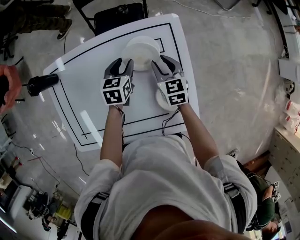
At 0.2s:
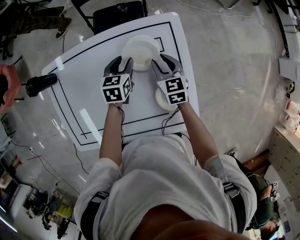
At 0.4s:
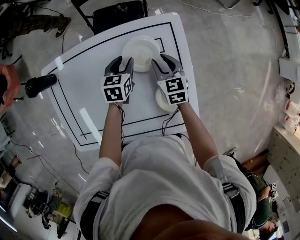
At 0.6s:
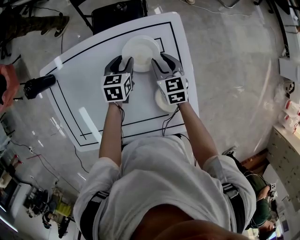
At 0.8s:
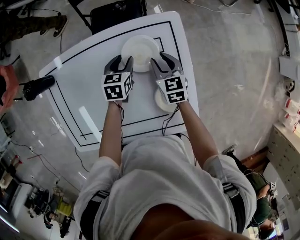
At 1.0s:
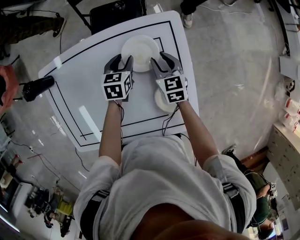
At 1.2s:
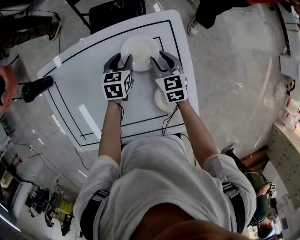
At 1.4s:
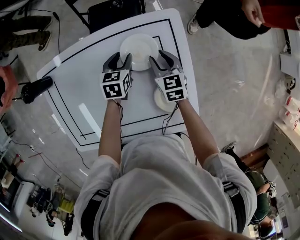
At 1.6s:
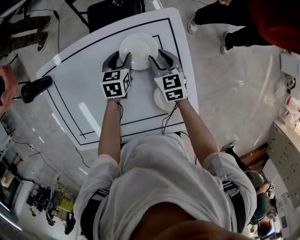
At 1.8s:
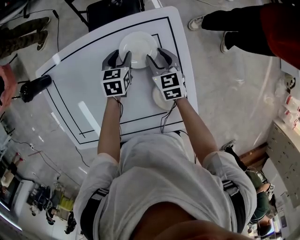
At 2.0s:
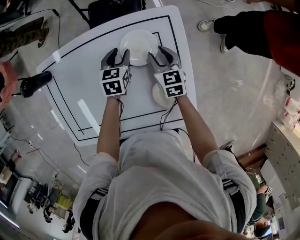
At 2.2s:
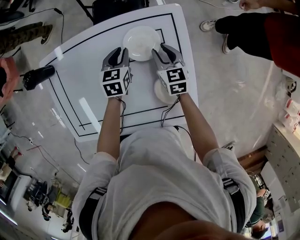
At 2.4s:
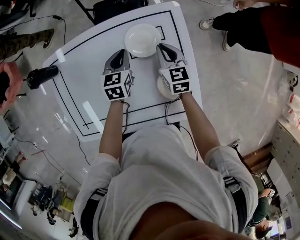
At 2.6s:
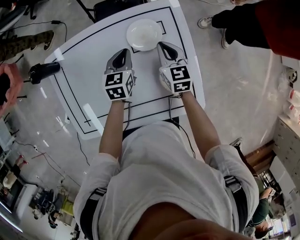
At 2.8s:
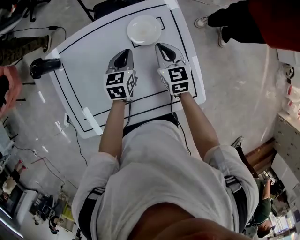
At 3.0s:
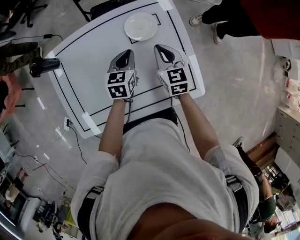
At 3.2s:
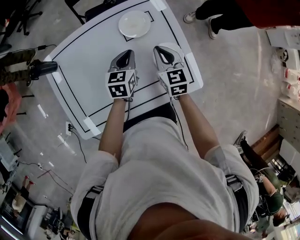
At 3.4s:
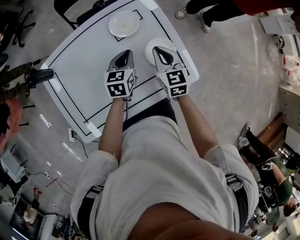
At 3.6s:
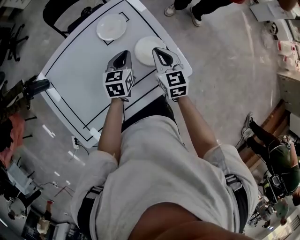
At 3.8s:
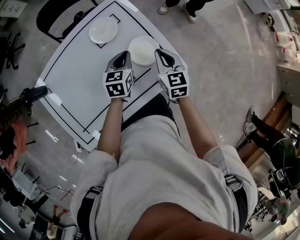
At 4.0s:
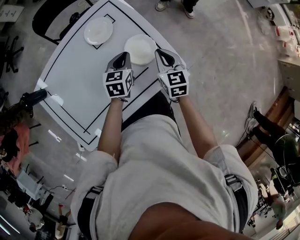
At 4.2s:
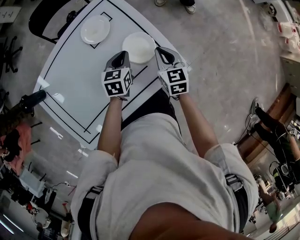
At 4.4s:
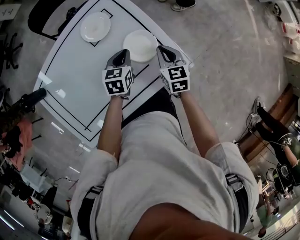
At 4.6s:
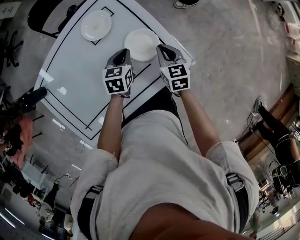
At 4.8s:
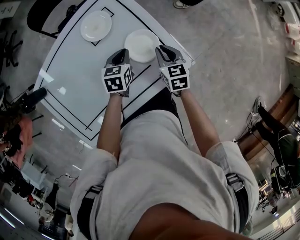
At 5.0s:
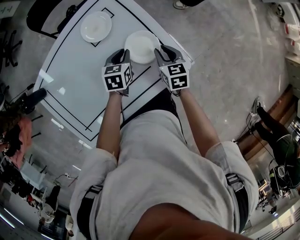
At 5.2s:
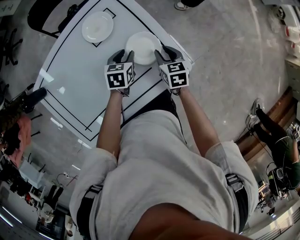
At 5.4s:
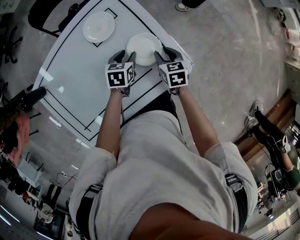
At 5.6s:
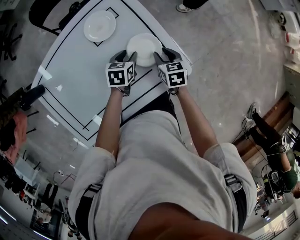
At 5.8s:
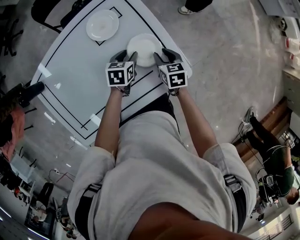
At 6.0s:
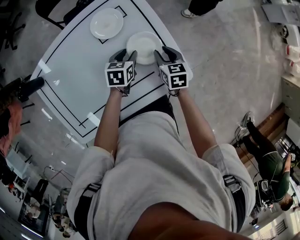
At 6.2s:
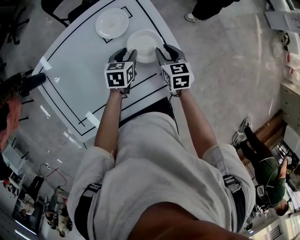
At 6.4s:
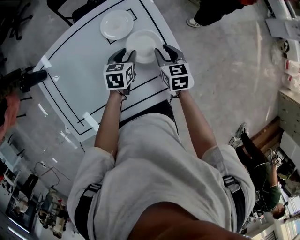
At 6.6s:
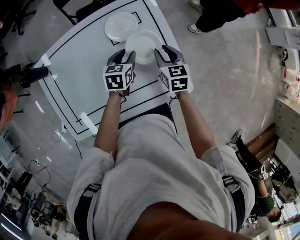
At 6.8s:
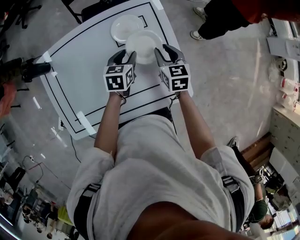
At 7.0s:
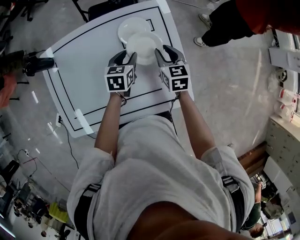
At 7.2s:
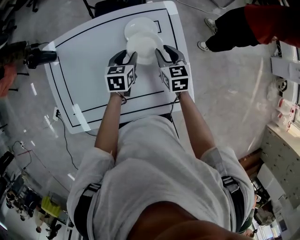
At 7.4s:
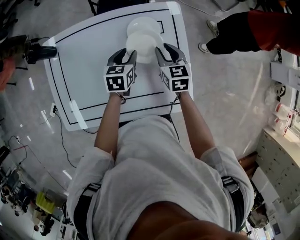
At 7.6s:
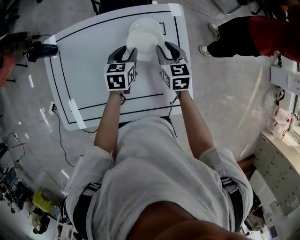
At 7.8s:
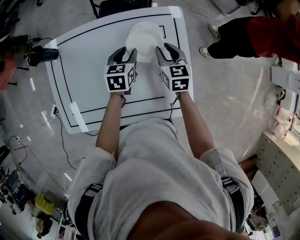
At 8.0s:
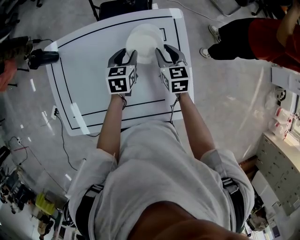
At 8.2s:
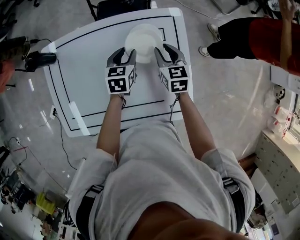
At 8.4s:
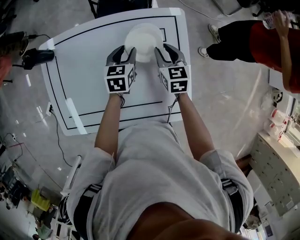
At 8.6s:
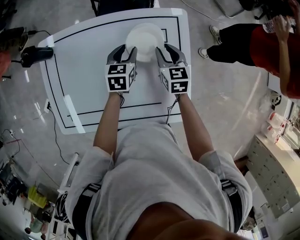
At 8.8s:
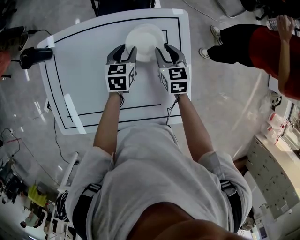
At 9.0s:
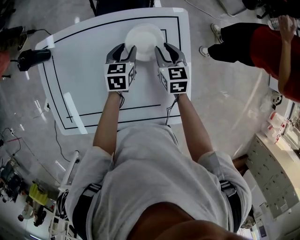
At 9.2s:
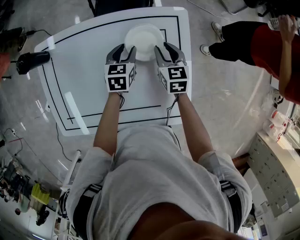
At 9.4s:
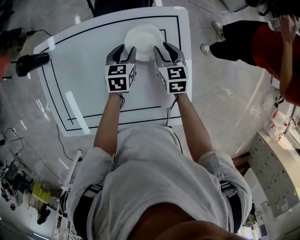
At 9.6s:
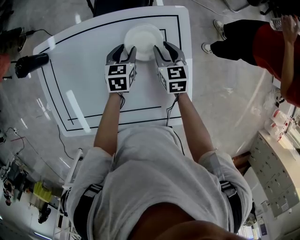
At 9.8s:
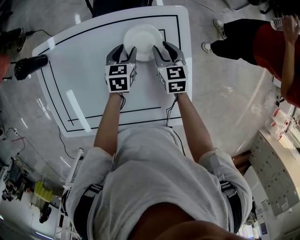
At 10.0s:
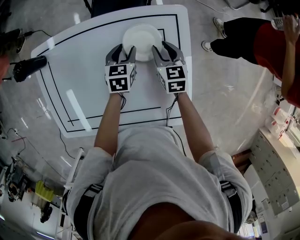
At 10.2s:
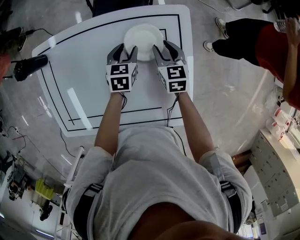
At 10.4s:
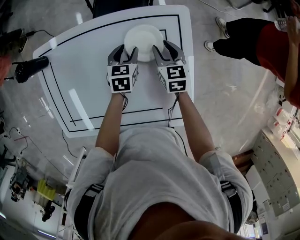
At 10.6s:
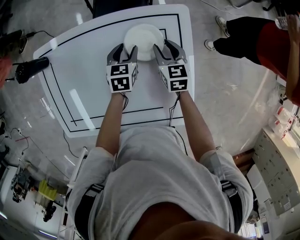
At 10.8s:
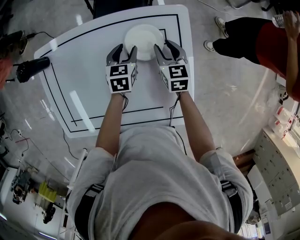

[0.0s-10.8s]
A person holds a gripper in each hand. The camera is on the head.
0.0s to 1.6s: The left gripper ends up about 5 cm from where it was.
1.6s to 3.0s: Both grippers move backward and upward, approximately 15 cm. The left gripper closes. Meanwhile the right gripper closes its fingers.
3.0s to 4.6s: The right gripper travels to the right, downward and backward by about 20 cm, and changes its angle by roughly 20 degrees. Meanwhile the left gripper travels to the right and downward by about 15 cm, and swivels some 20 degrees.
4.6s to 6.2s: The right gripper moves forward, approximately 5 cm, and opens its fingers, while the left gripper ends up some 5 cm from where it was, and opens.
6.2s to 7.8s: The left gripper moves to the left, forward and upward, about 15 cm, and rotates some 20 degrees, while the right gripper travels forward, to the left and upward by roughly 20 cm, and rotates some 20 degrees.
7.8s to 9.2s: Both grippers travel together downward and forward, roughly 10 cm.
9.2s to 10.8s: There are only small adjustments of the grippers.

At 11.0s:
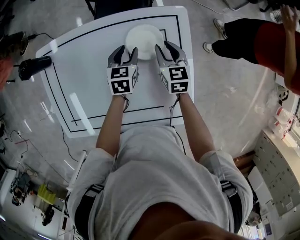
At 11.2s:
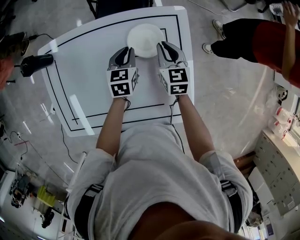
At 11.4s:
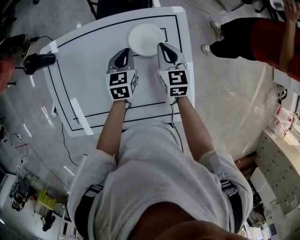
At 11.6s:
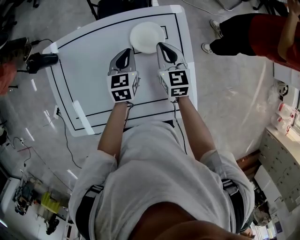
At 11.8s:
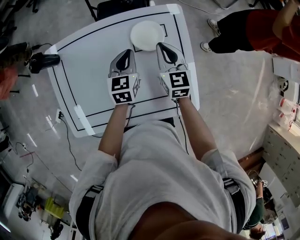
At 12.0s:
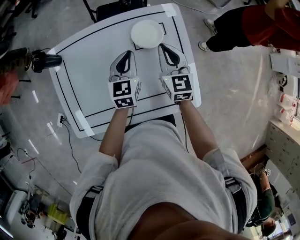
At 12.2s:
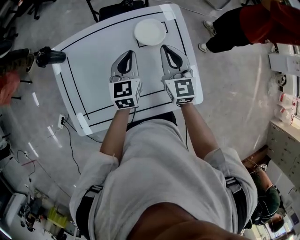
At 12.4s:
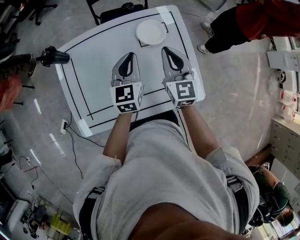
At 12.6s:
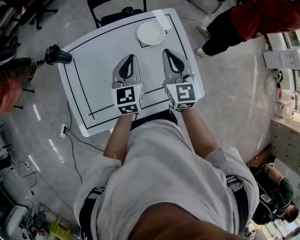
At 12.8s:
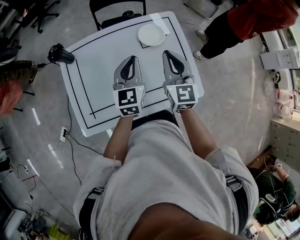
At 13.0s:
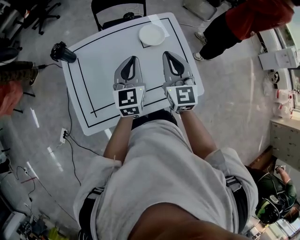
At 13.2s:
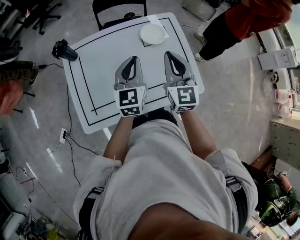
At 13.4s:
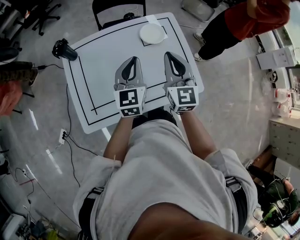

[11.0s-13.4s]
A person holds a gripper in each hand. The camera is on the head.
11.0s to 12.2s: Both grippers travel together upward and backward, some 20 cm. The left gripper turns by approximately 20 degrees, and closes. The right gripper swivels about 20 degrees, and closes.
12.2s to 13.4s: The two grippers go about 15 cm backward and upward.

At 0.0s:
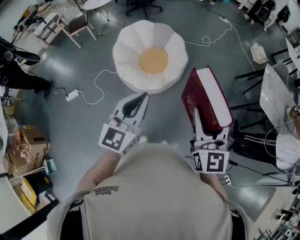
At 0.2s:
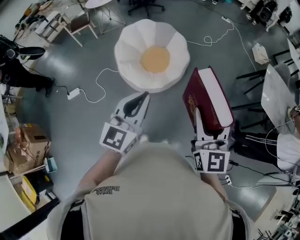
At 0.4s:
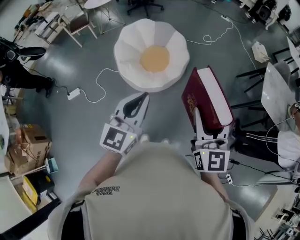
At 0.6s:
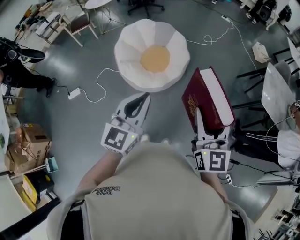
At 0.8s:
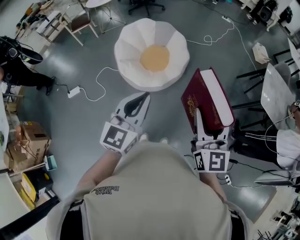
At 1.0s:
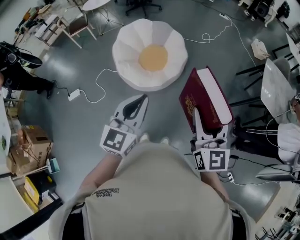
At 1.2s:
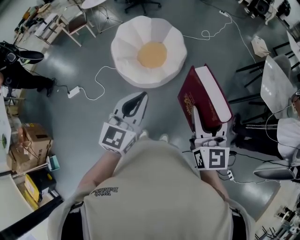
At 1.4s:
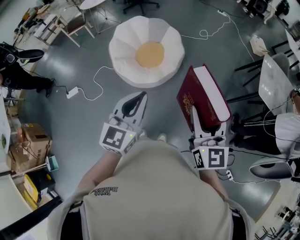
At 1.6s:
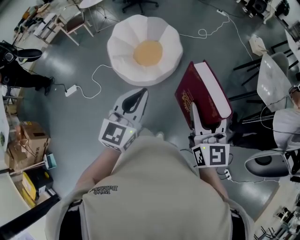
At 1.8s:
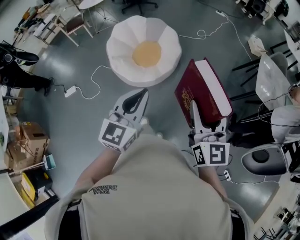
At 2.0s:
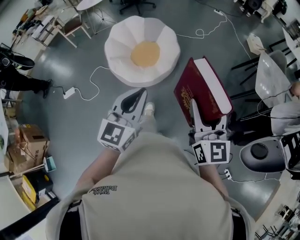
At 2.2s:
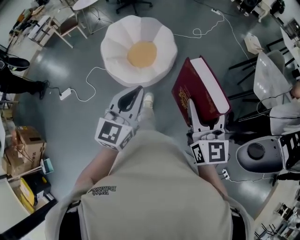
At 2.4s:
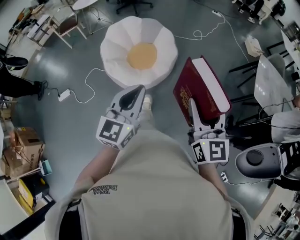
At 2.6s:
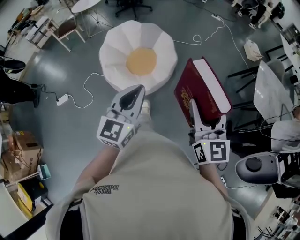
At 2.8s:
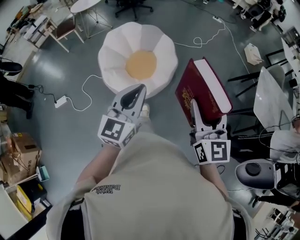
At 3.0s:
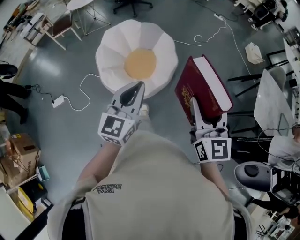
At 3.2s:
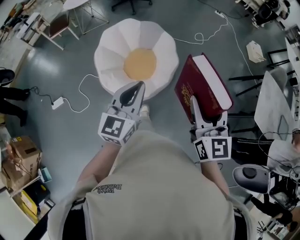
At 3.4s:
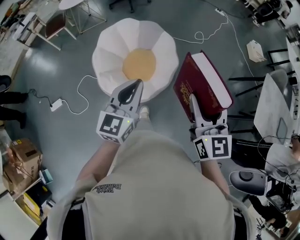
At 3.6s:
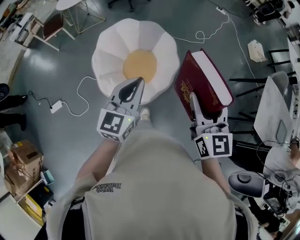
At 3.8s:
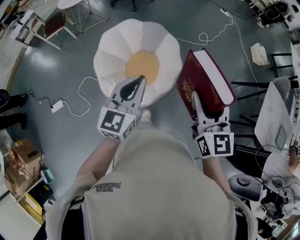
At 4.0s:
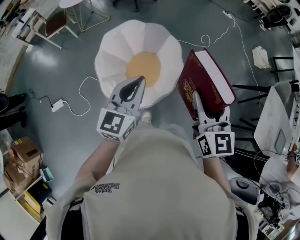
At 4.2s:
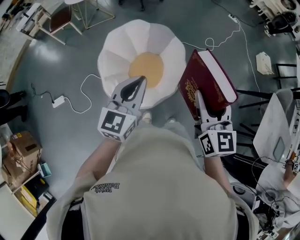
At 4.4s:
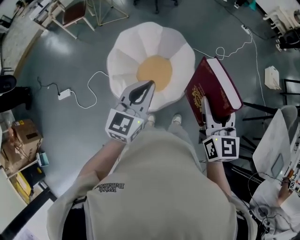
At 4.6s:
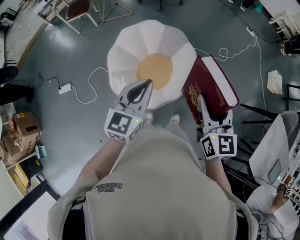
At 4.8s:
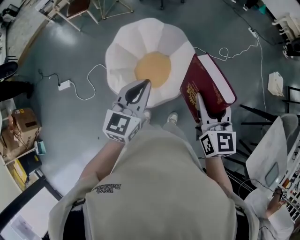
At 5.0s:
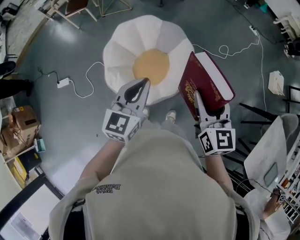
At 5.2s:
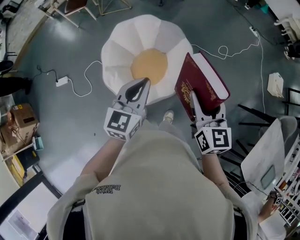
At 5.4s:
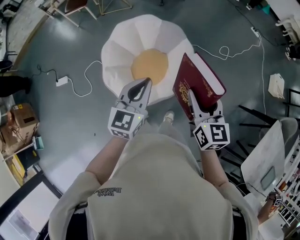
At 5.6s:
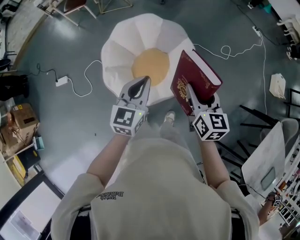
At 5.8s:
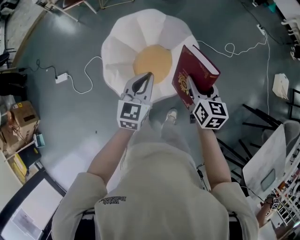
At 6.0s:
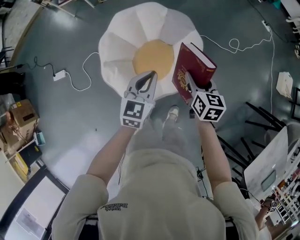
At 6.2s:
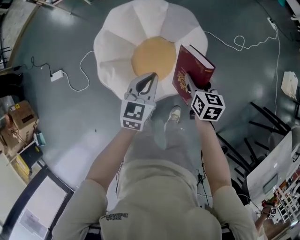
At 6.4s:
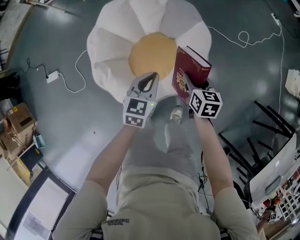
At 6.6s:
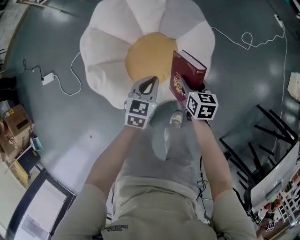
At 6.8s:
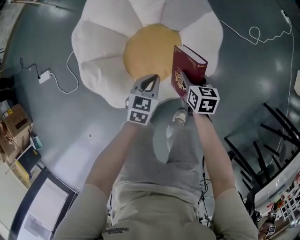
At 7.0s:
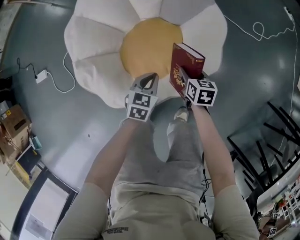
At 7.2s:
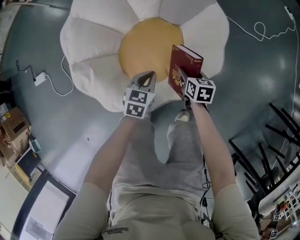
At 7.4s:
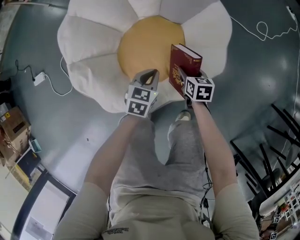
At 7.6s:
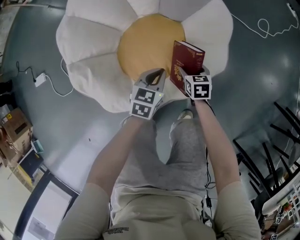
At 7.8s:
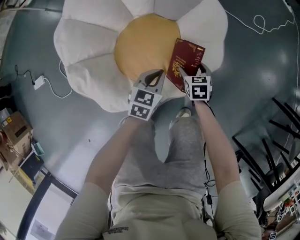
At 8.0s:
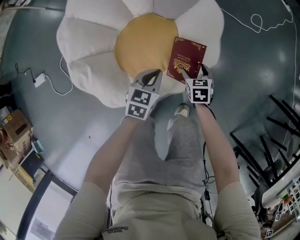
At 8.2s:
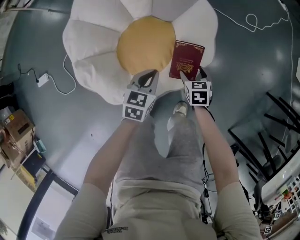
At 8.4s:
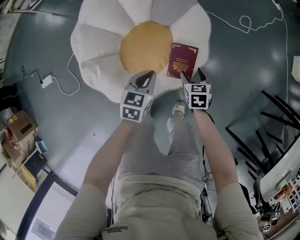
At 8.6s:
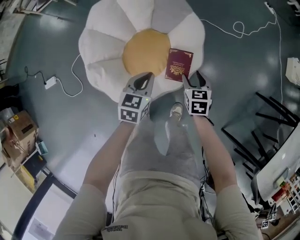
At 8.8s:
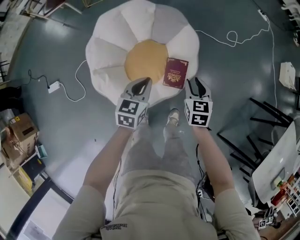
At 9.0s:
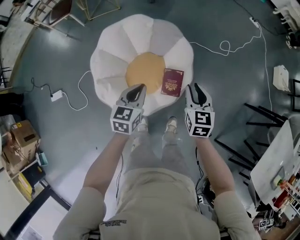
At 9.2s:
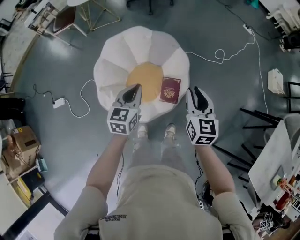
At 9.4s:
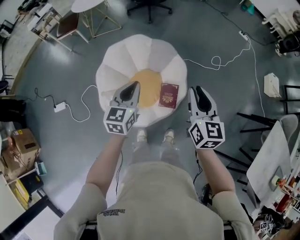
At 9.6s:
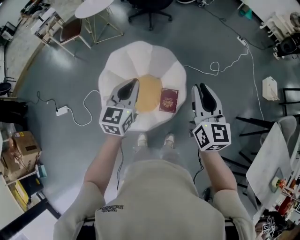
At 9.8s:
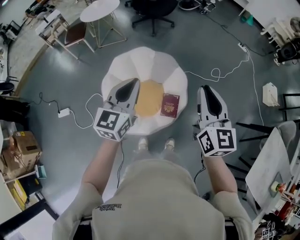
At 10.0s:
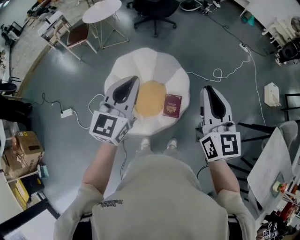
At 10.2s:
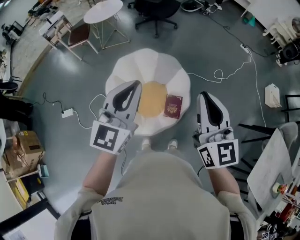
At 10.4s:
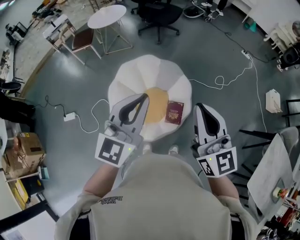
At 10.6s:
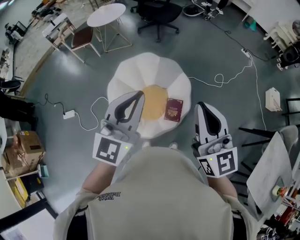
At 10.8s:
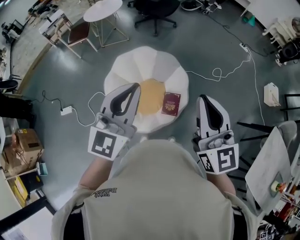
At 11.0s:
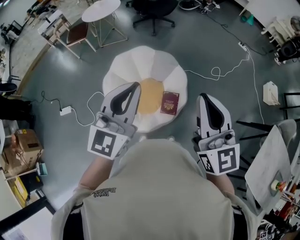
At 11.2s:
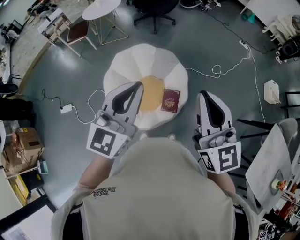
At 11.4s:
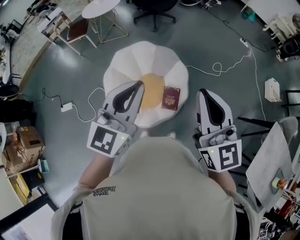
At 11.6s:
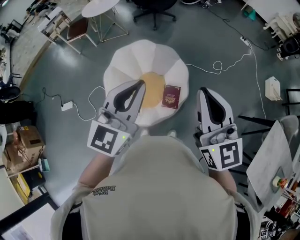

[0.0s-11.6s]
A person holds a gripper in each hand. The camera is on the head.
0.0s to 1.4s: The grippers both shift to the right by approximately 10 cm.
1.4s to 2.8s: The two grippers go approximately 15 cm forward.
2.8s to 4.4s: Both grippers move forward, roughly 35 cm.
4.4s to 5.8s: Both grippers move downward and forward, some 20 cm. The right gripper swivels about 20 degrees.
5.8s to 7.2s: Both grippers move downward, some 60 cm. The right gripper turns by roughly 30 degrees. The left gripper turns by some 30 degrees.
7.2s to 8.8s: Both grippers travel together upward, roughly 35 cm. The right gripper changes its angle by approximately 30 degrees, and opens, then closes again.
8.8s to 10.2s: Both grippers travel together upward, some 50 cm. The right gripper tilts its fingers approximately 40 degrees upward. Meanwhile the left gripper tips its fingers upward by some 30 degrees.
10.2s to 11.6s: The left gripper is displaced backward by about 5 cm, while the right gripper ends up approximately 5 cm from where it was.
